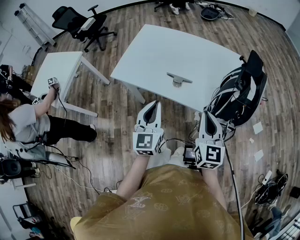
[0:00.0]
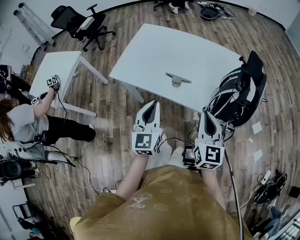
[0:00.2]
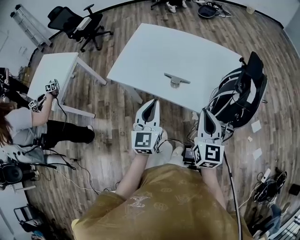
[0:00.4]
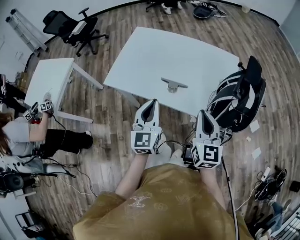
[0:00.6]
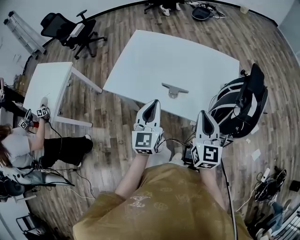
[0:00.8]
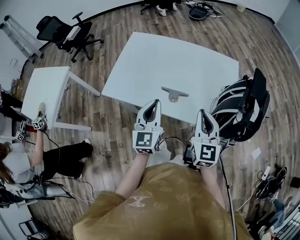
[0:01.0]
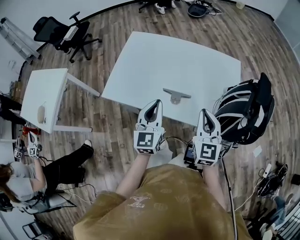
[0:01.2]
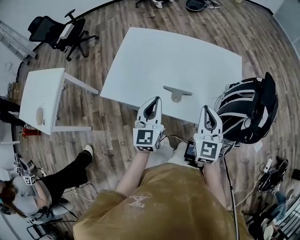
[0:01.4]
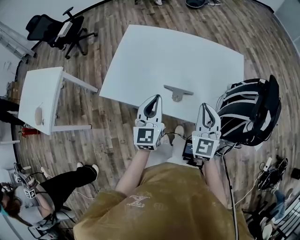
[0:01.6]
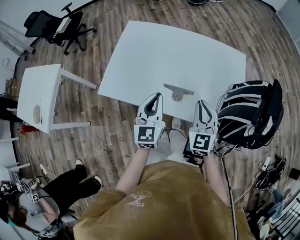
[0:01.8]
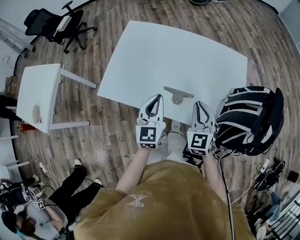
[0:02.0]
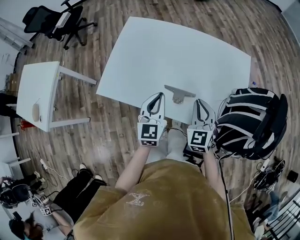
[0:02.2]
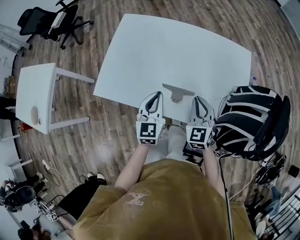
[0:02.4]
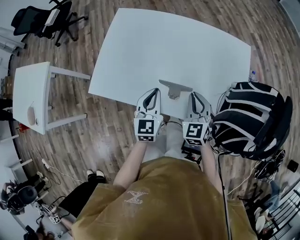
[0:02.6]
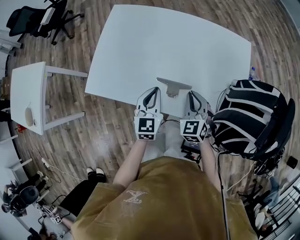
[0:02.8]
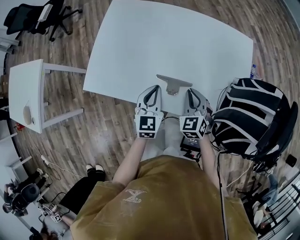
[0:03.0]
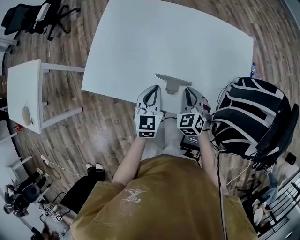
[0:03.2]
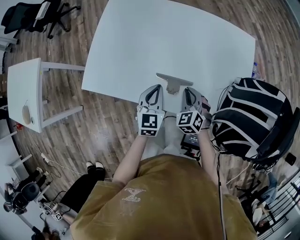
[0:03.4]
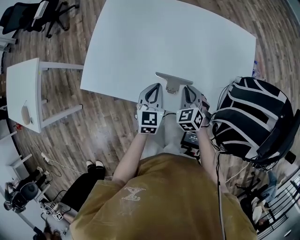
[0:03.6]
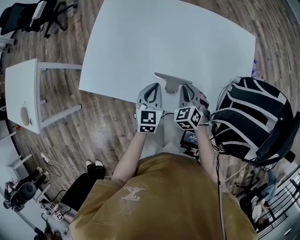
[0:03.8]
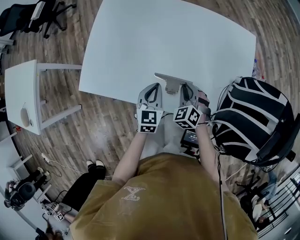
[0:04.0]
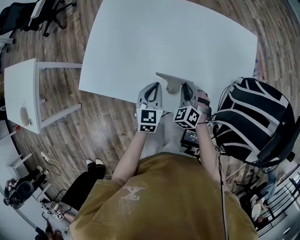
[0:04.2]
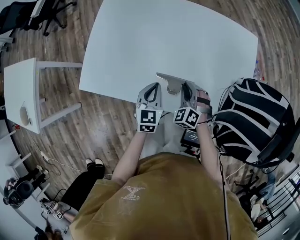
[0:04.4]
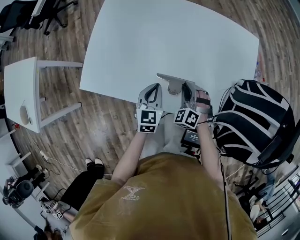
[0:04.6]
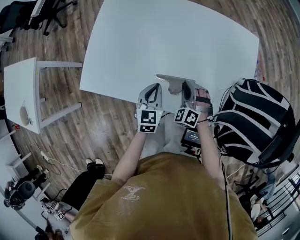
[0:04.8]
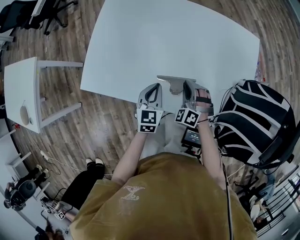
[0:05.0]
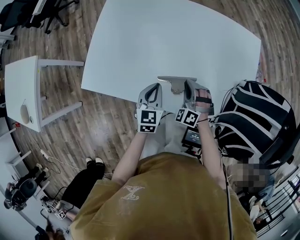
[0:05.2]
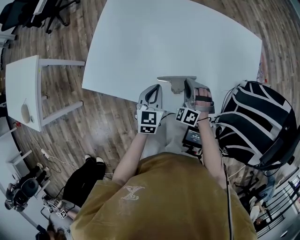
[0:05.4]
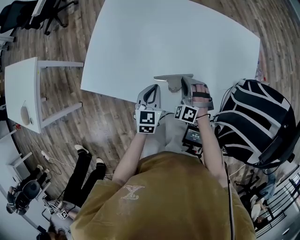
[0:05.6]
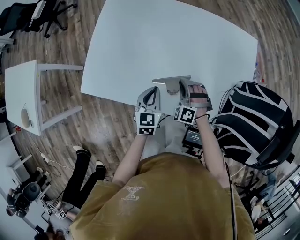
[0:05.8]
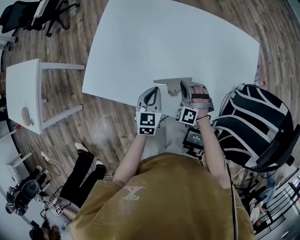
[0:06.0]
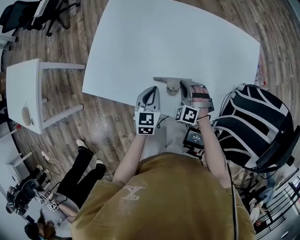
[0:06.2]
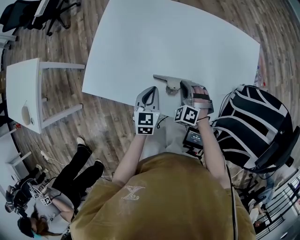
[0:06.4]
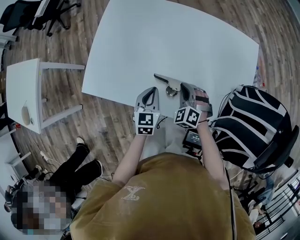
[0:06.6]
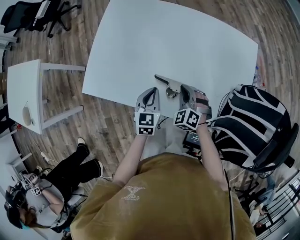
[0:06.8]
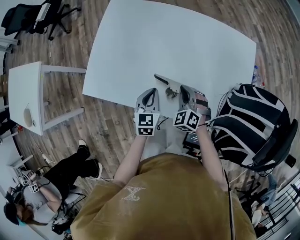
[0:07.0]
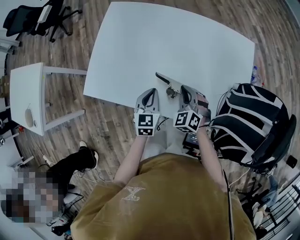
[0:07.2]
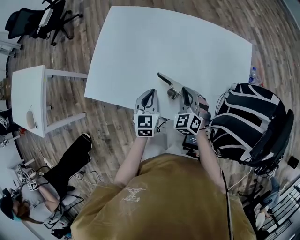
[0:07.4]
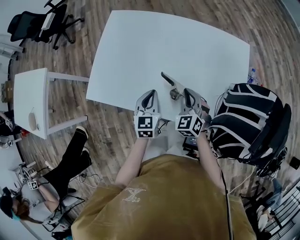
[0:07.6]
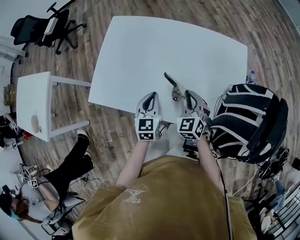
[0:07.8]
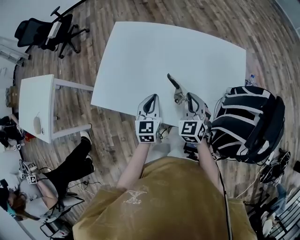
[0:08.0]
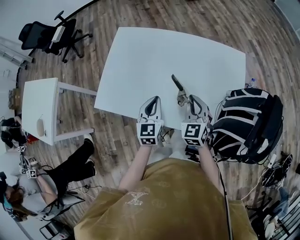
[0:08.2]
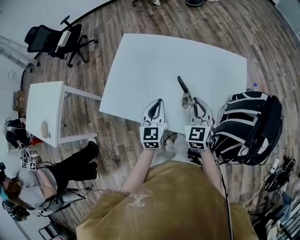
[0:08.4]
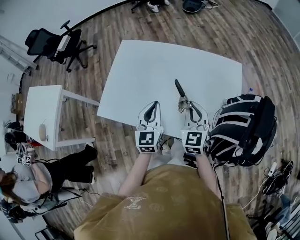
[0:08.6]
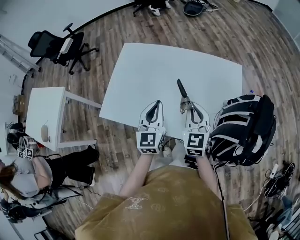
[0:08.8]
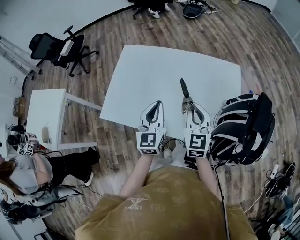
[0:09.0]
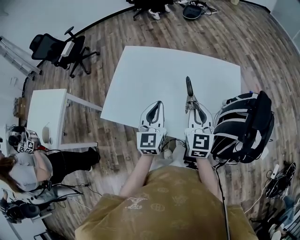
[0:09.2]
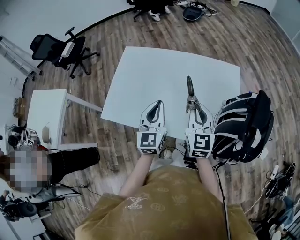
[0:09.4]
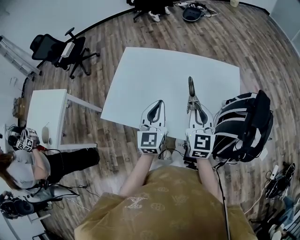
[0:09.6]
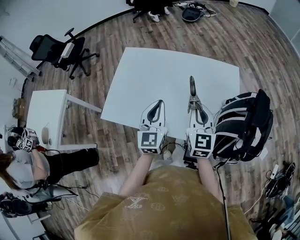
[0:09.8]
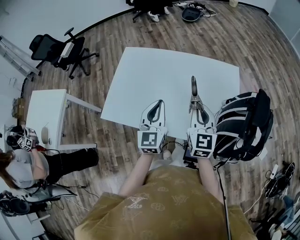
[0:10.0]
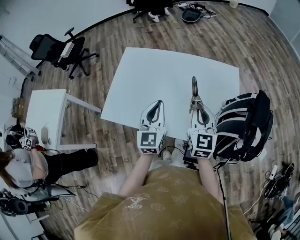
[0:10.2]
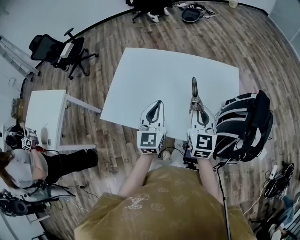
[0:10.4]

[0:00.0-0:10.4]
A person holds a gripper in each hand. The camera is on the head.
0:00.0 to 0:01.4: Both grippers travel together forward, about 15 cm.
0:01.4 to 0:03.0: The two grippers go approximately 20 cm downward and forward. The right gripper swivels approximately 30 degrees.
0:03.0 to 0:04.4: The grippers both shift downward by roughly 5 cm. The right gripper rotates approximately 30 degrees.
0:04.4 to 0:06.0: The right gripper changes its angle by approximately 20 degrees.
0:06.0 to 0:07.4: The right gripper is displaced upward by about 5 cm, and rotates about 30 degrees.
0:07.4 to 0:09.0: The grippers both shift upward by about 20 cm. The right gripper turns by about 40 degrees. The left gripper turns by some 20 degrees.
0:09.0 to 0:10.4: The grippers make only small movements.

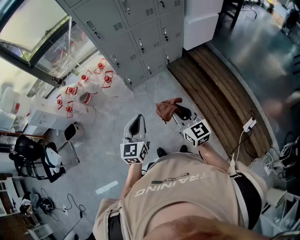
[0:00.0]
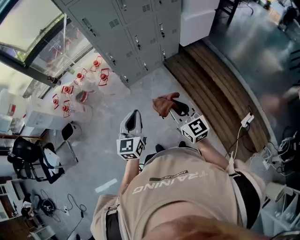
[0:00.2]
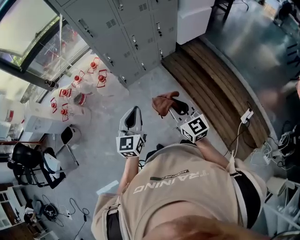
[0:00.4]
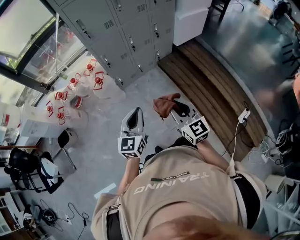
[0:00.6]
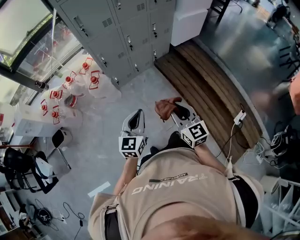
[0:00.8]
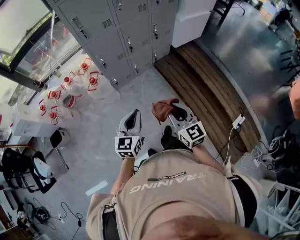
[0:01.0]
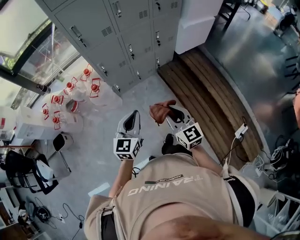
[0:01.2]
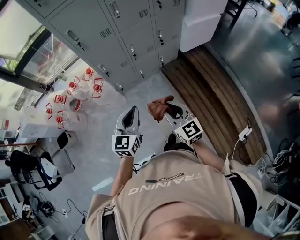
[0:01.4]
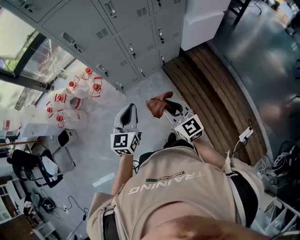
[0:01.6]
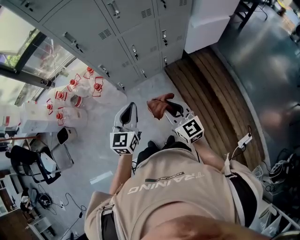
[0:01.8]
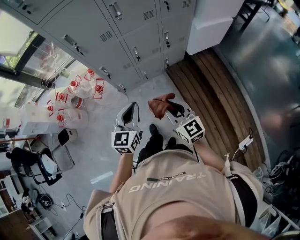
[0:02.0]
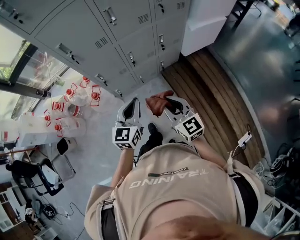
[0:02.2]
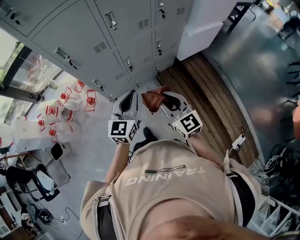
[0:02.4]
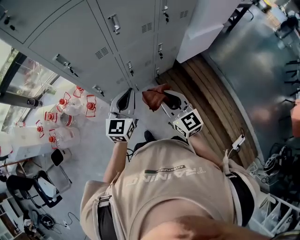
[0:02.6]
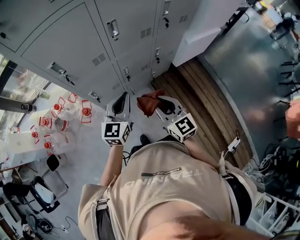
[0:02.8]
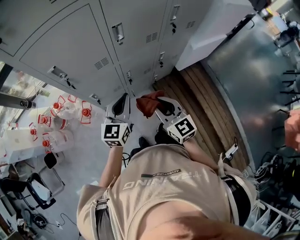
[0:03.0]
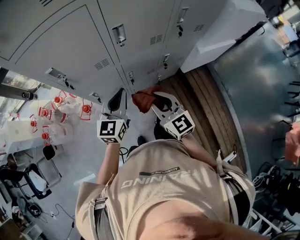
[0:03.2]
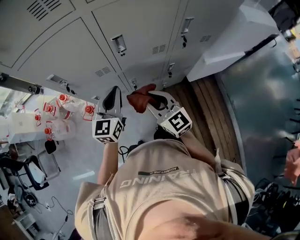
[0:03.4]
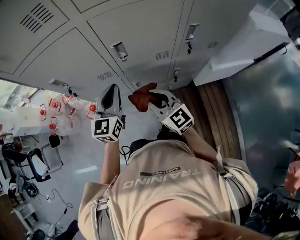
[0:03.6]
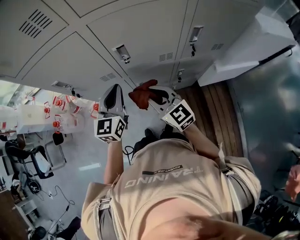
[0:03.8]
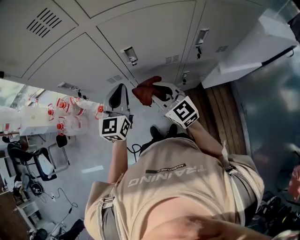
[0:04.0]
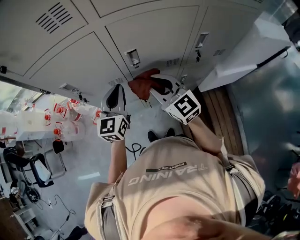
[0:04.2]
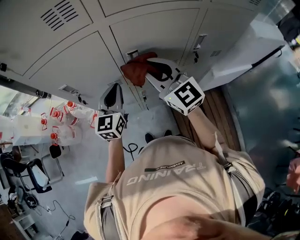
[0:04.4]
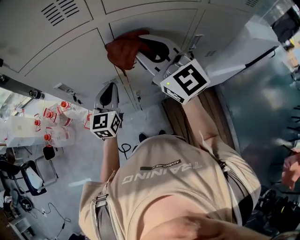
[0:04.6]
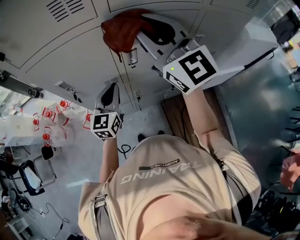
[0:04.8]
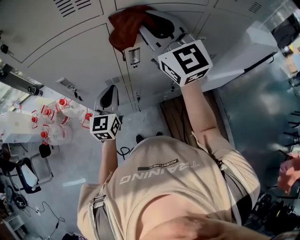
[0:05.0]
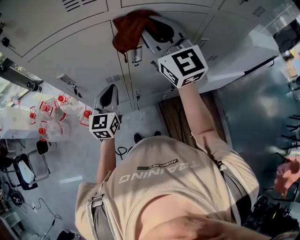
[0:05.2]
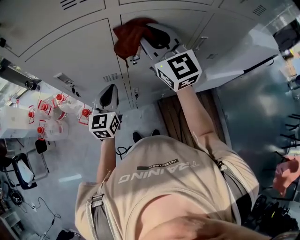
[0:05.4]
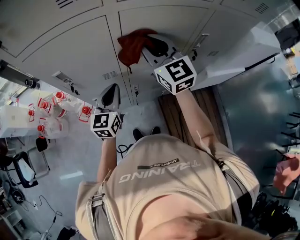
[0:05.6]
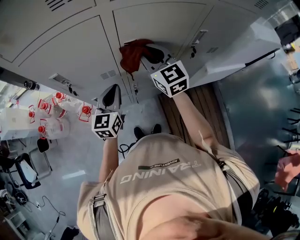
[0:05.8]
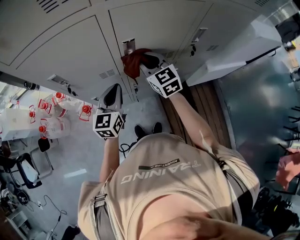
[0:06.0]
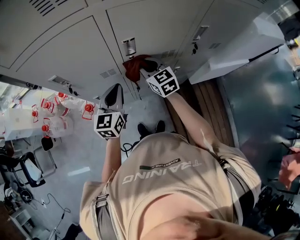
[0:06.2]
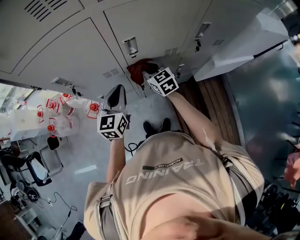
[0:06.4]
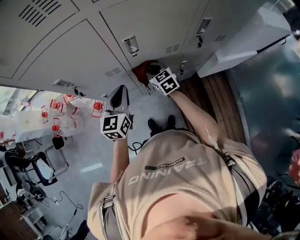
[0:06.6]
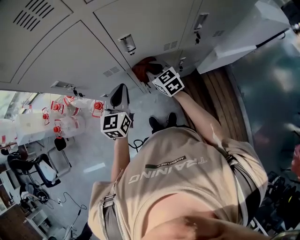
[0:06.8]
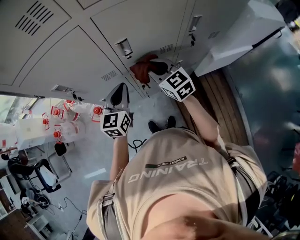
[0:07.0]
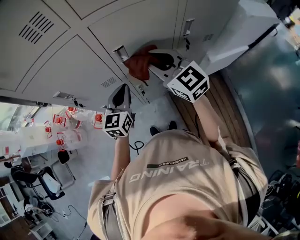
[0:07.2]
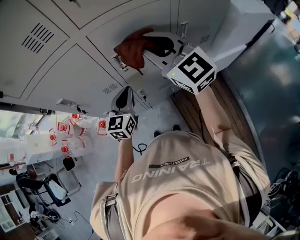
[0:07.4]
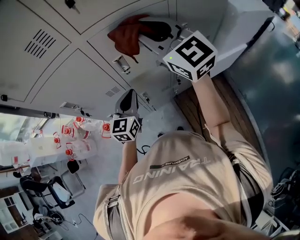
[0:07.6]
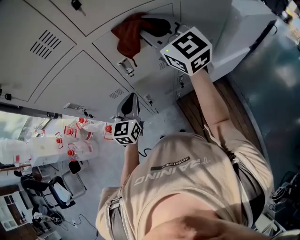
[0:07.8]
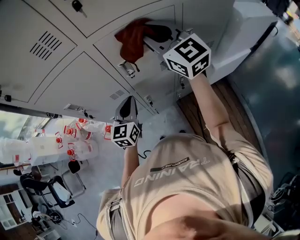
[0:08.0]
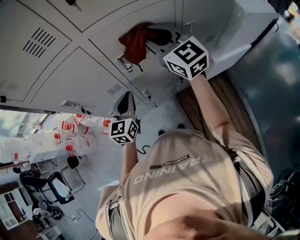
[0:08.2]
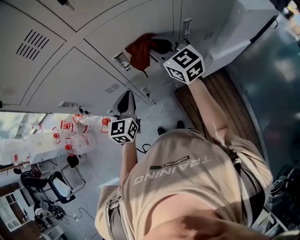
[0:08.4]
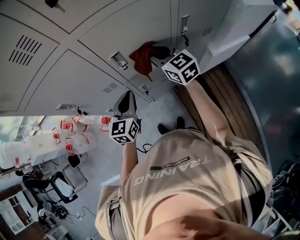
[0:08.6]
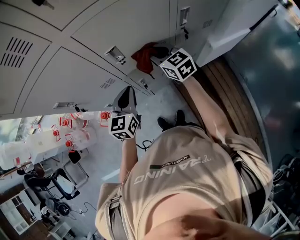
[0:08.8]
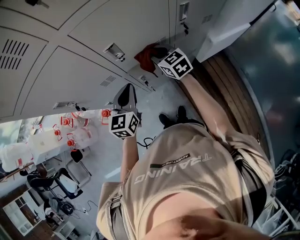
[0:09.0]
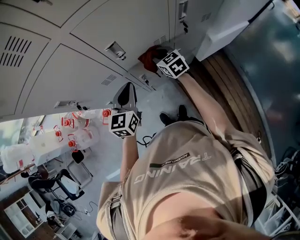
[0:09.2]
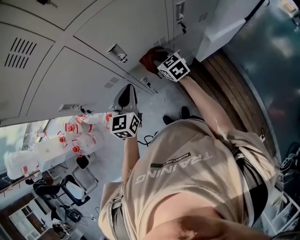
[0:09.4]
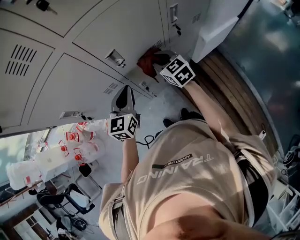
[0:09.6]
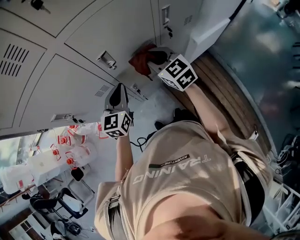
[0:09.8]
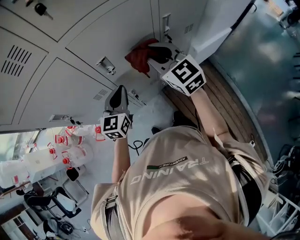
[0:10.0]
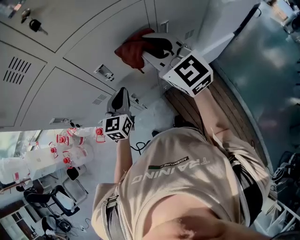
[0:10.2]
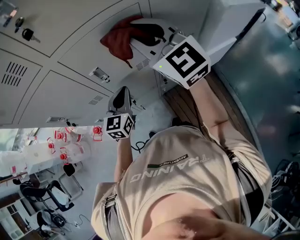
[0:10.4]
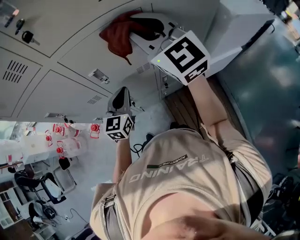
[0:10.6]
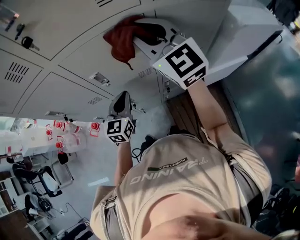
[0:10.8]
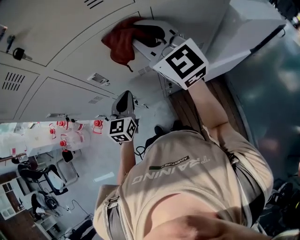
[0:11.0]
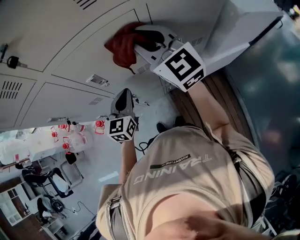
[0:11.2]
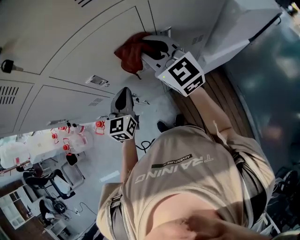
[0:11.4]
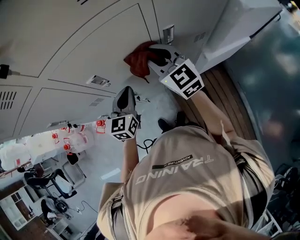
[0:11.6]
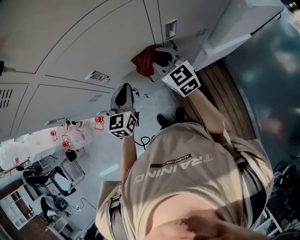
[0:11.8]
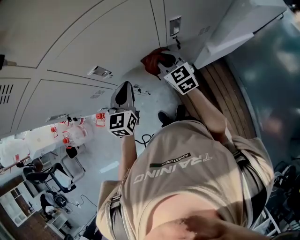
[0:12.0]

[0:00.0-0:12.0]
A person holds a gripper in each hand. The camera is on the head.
0:00.0 to 0:01.6: The two grippers go approximately 25 cm forward.
0:01.6 to 0:03.0: Both grippers travel together forward, some 30 cm.
0:03.0 to 0:04.4: The left gripper goes some 15 cm forward, and changes its angle by approximately 20 degrees. The right gripper goes approximately 30 cm forward and upward, and turns by roughly 30 degrees.
0:04.4 to 0:06.0: The left gripper goes roughly 5 cm downward. Meanwhile the right gripper goes about 15 cm downward and forward, and swivels about 20 degrees.
0:06.0 to 0:07.6: The left gripper is displaced to the right by roughly 5 cm; the right gripper heads upward, covering roughly 25 cm, and changes its angle by roughly 20 degrees.
0:07.6 to 0:09.0: The right gripper is displaced downward by some 35 cm, and tilts its fingers some 30 degrees downward.
0:09.0 to 0:10.4: The left gripper is displaced to the right by roughly 10 cm. Meanwhile the right gripper is displaced upward by about 30 cm, and rotates roughly 40 degrees.
0:10.4 to 0:12.0: The right gripper travels downward by about 30 cm, and turns by approximately 30 degrees.

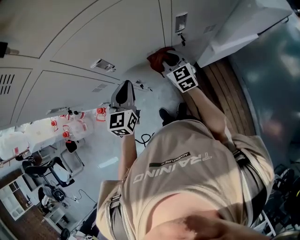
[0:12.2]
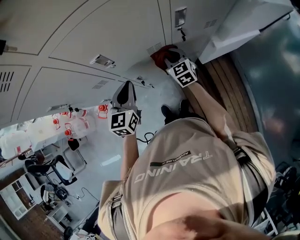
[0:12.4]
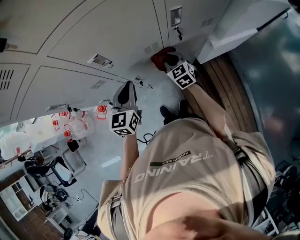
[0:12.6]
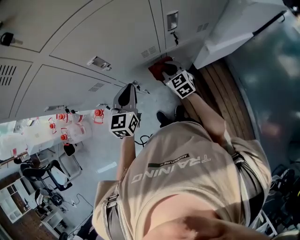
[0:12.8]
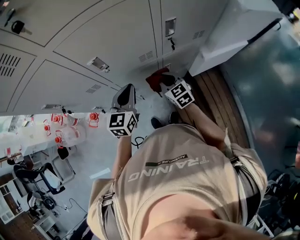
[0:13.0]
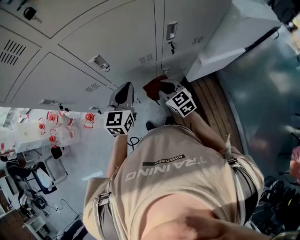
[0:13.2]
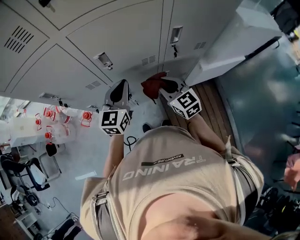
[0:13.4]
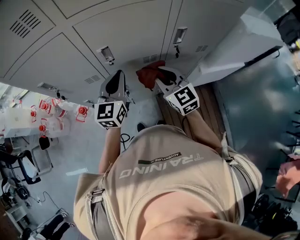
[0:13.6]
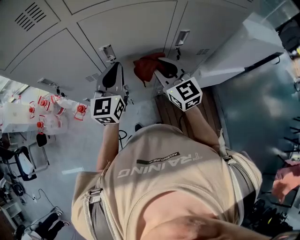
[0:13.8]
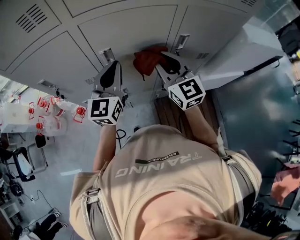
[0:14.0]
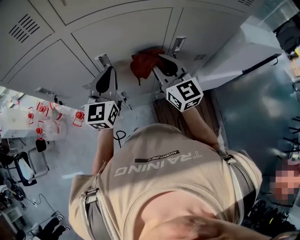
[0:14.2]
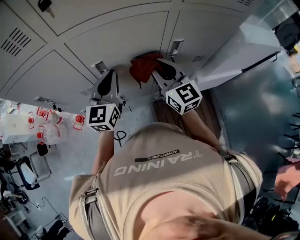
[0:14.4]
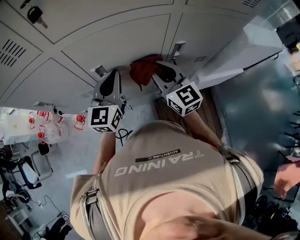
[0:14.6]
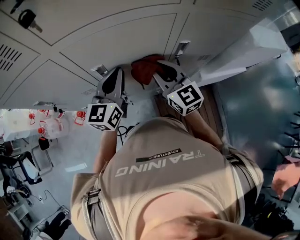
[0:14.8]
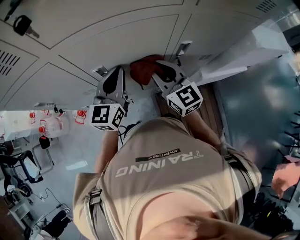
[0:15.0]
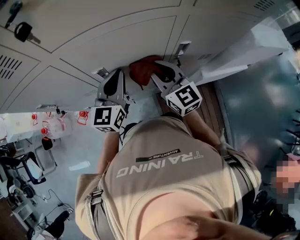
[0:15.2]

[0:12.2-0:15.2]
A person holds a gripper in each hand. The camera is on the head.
0:12.2 to 0:13.8: The left gripper is displaced upward by approximately 10 cm, while the right gripper heads upward and backward, covering roughly 20 cm, and swivels roughly 20 degrees.
0:13.8 to 0:15.2: The grippers both shift forward by some 5 cm.
